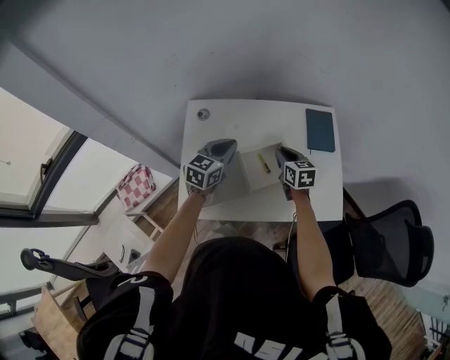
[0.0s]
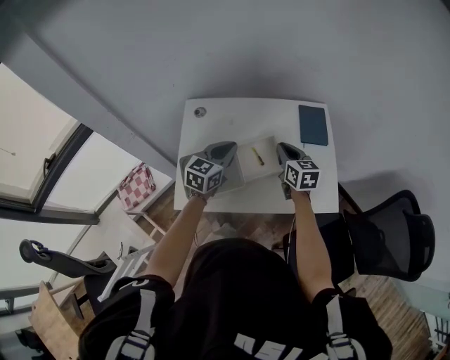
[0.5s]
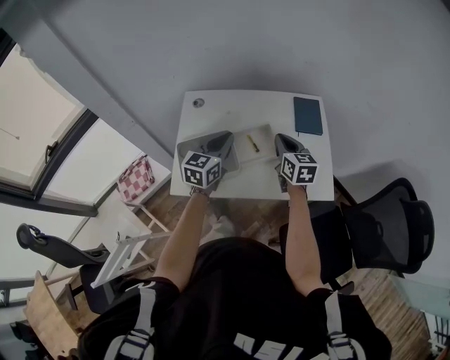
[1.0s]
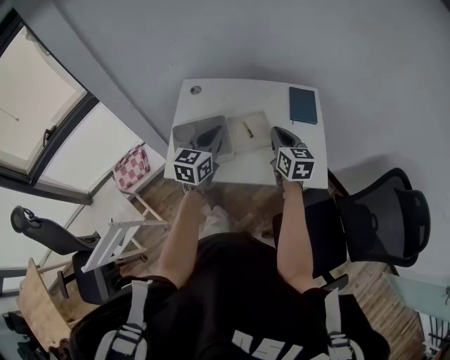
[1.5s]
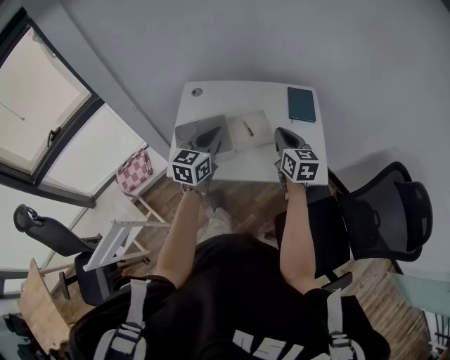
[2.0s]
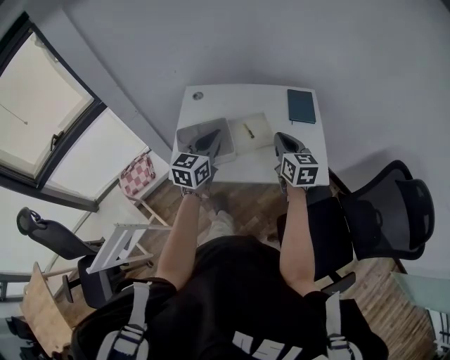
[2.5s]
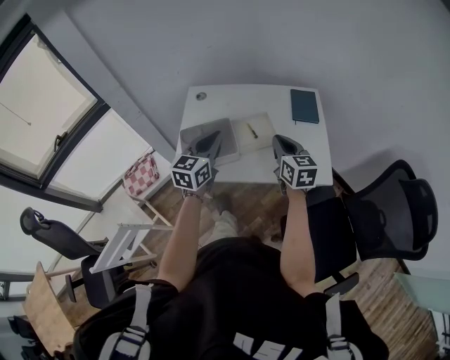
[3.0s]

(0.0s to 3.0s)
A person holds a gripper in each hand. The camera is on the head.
0.0s - 1.5s: The two grippers go approximately 20 cm backward and upward.
1.5s - 3.0s: The right gripper travels backward by some 5 cm.

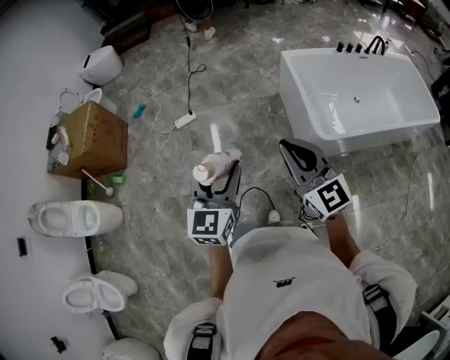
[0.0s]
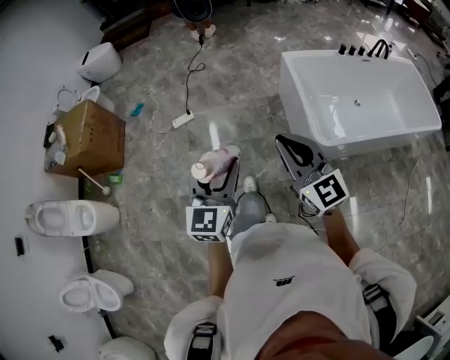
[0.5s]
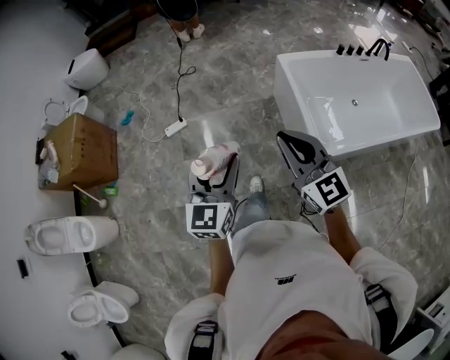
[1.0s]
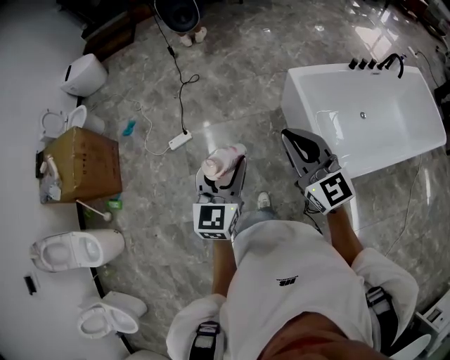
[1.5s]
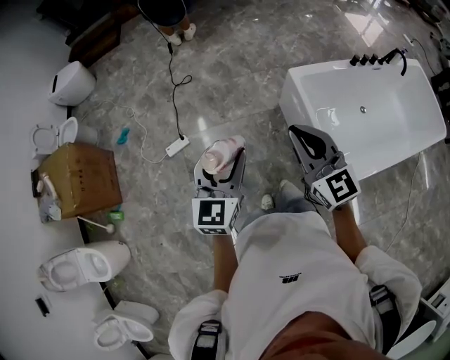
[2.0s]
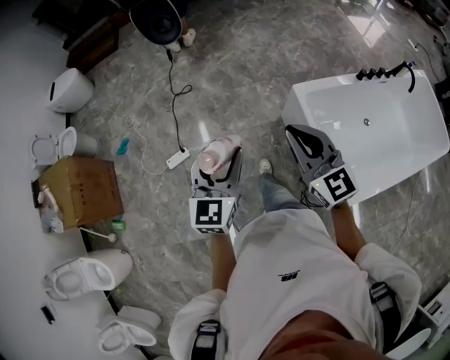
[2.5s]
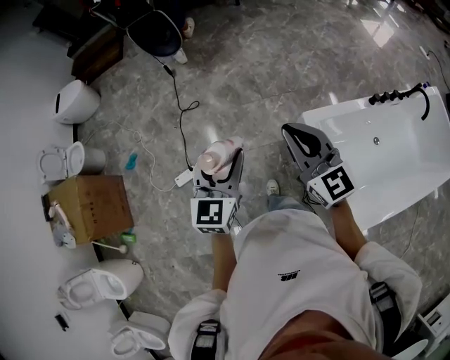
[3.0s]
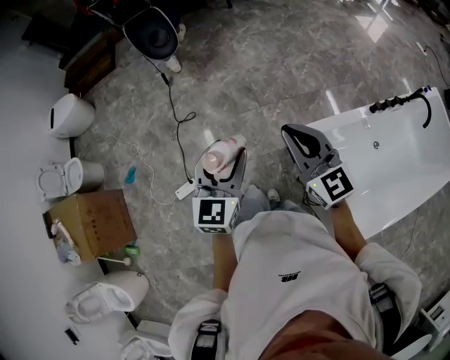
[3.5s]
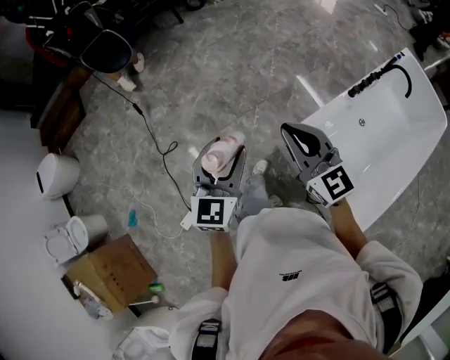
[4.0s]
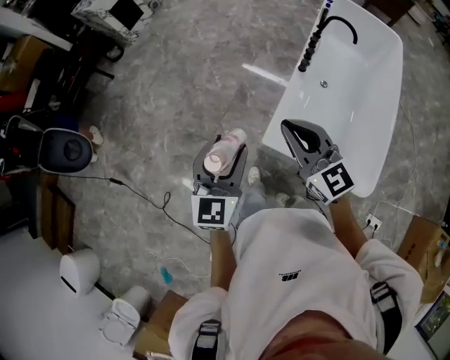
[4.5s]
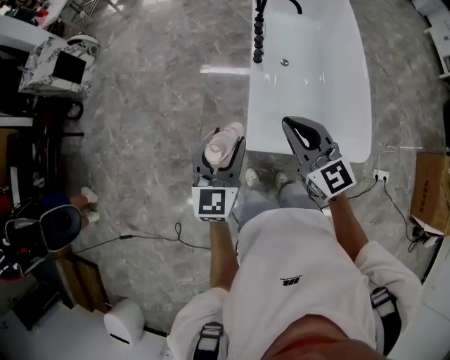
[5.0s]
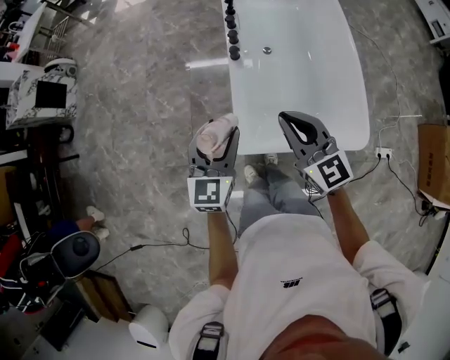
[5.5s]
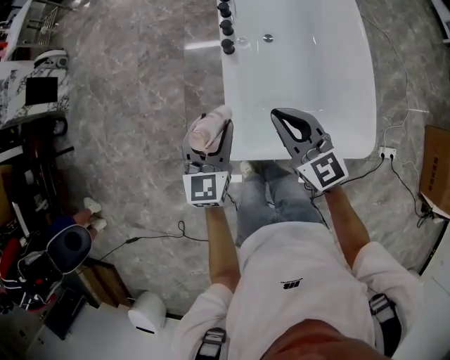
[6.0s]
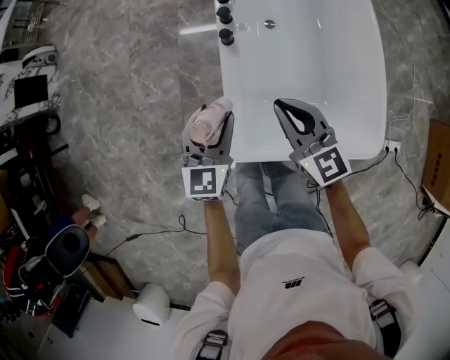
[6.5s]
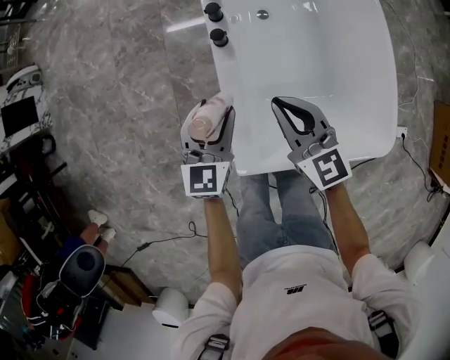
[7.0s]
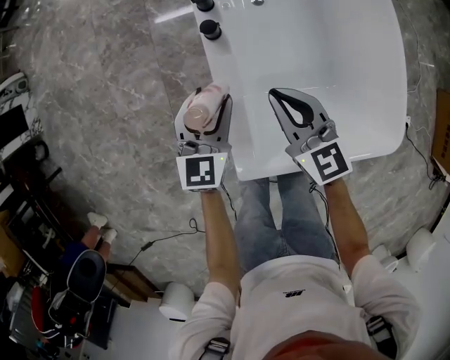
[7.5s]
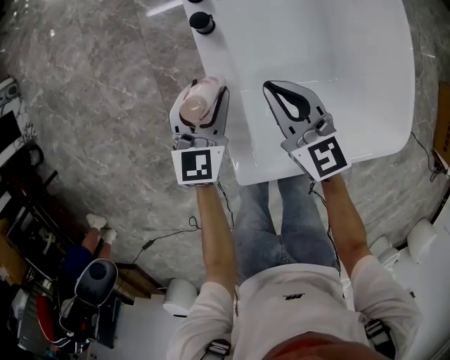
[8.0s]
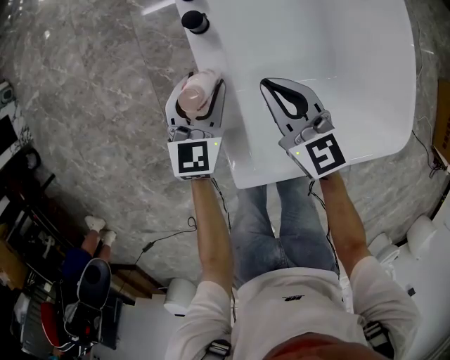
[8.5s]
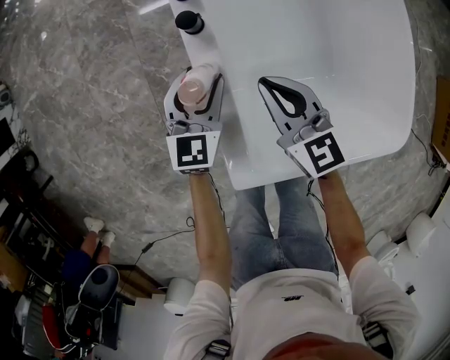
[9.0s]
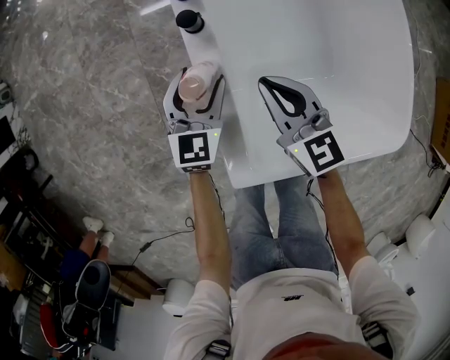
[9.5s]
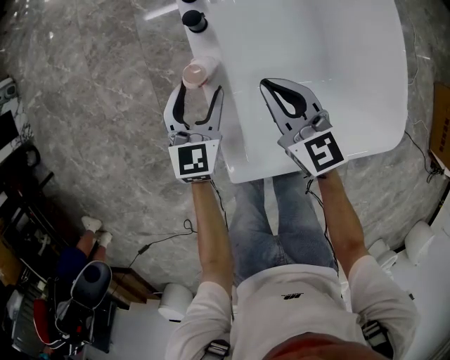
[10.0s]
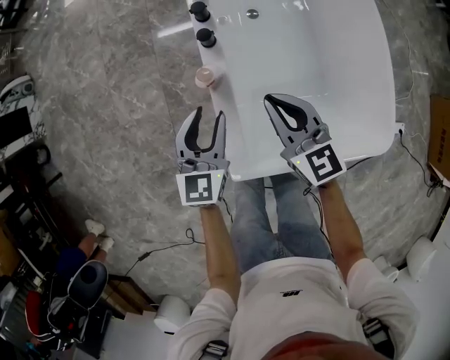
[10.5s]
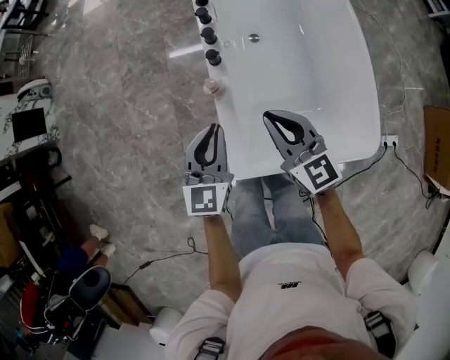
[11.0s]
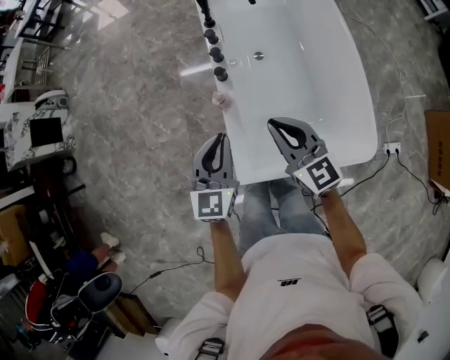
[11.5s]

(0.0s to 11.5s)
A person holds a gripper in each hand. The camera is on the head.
0.0s - 2.0s: The two grippers travel together, forward, about 50 cm.
2.0s - 4.0s: The two grippers travel together, forward, about 60 cm. The left gripper changes its angle by about 20 degrees.
4.0s - 6.0s: Both grippers are carried some 40 cm. The left gripper rotates some 50 degrees; the right gripper changes its angle by approximately 60 degrees.
6.0s - 7.5s: Both grippers move downward and forward, some 25 cm.
7.5s - 9.5s: Both grippers travel together downward, approximately 10 cm.
9.5s - 11.5s: The left gripper moves upward and backward, roughly 35 cm, and closes its fingers; the right gripper heads upward, covering approximately 30 cm.

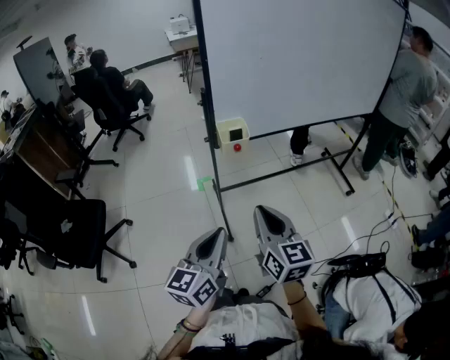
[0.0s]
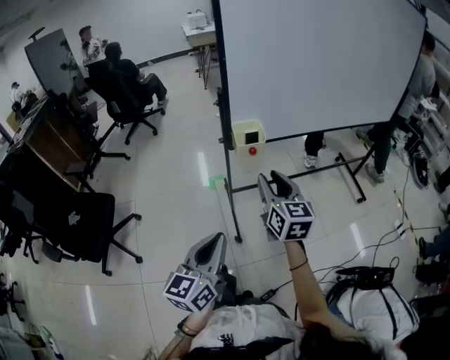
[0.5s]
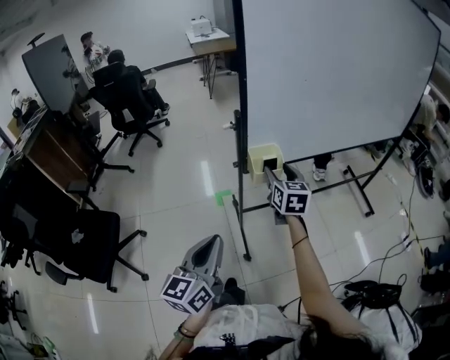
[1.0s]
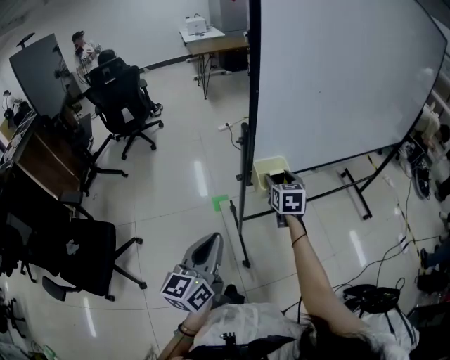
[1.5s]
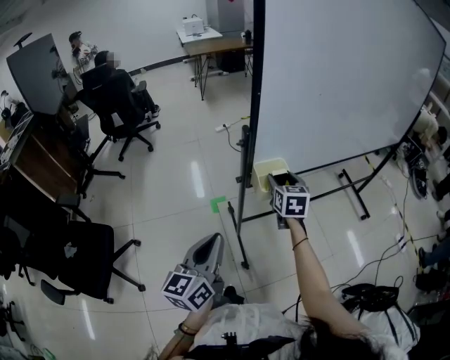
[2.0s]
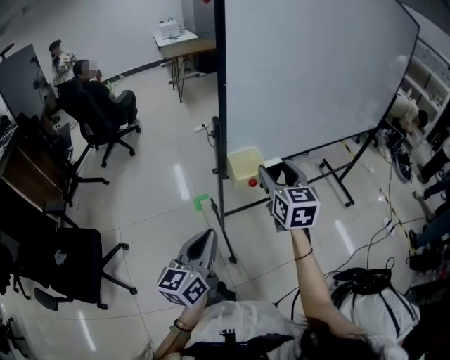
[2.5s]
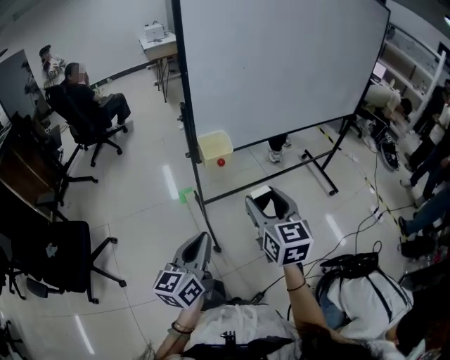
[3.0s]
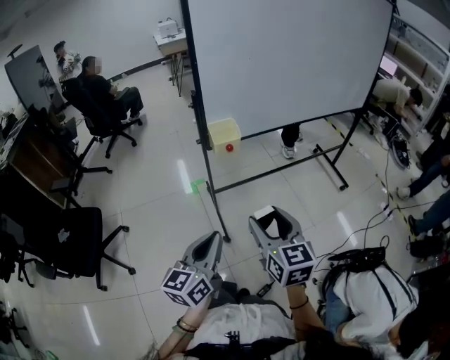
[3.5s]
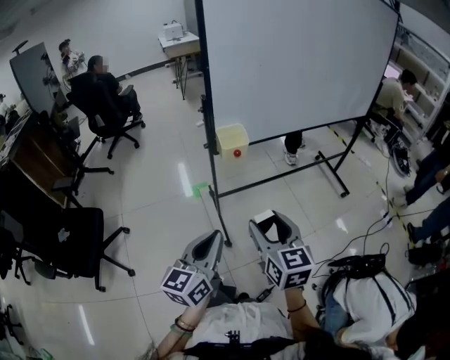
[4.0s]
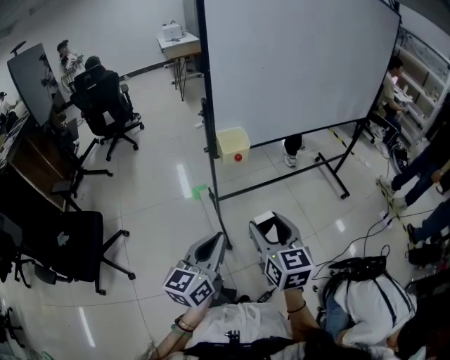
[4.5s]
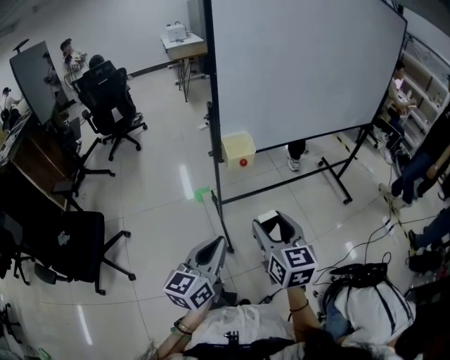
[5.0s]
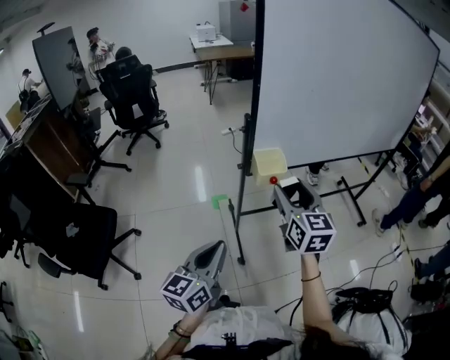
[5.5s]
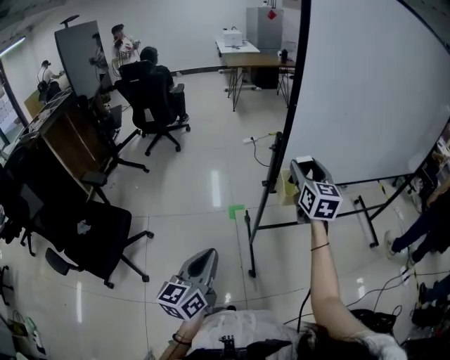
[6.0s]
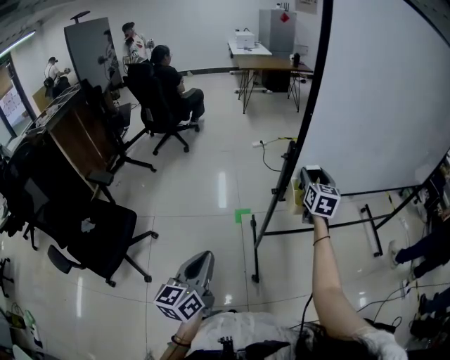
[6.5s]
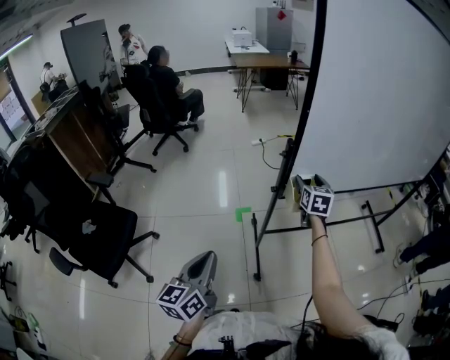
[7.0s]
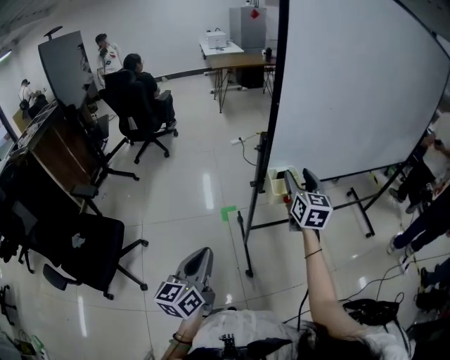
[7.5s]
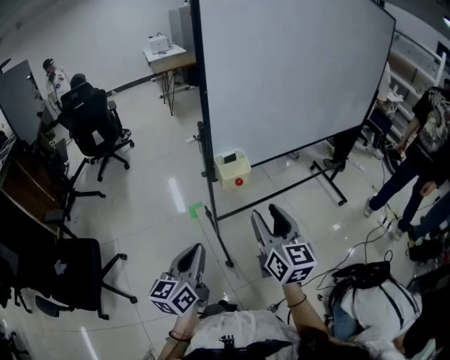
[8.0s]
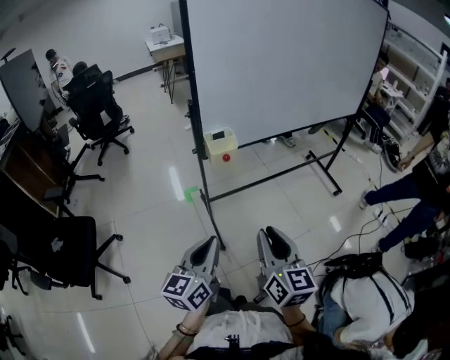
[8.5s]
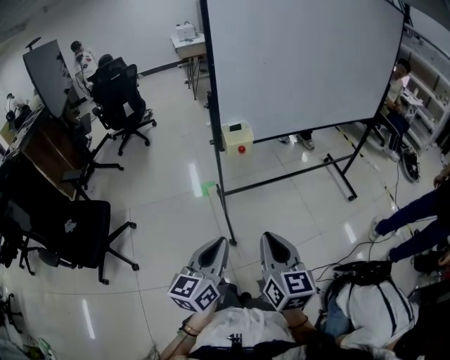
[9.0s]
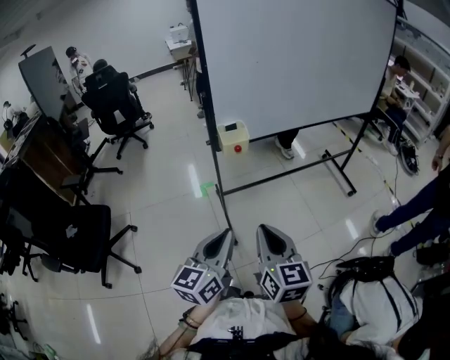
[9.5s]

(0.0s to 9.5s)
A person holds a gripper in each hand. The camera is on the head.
0.0s - 2.0s: The left gripper goes roughly 25 cm forward and to the left, while the right gripper goes about 35 cm forward, swivels approximately 20 degrees, and opens.
2.0s - 4.0s: The left gripper travels backward and to the right by some 20 cm, while the right gripper heads backward, covering approximately 40 cm.
4.0s - 5.5s: The right gripper is displaced forward by about 20 cm. The left gripper goes roughly 10 cm to the left and forward.
5.5s - 7.5s: The left gripper is displaced to the left by roughly 10 cm; the right gripper travels forward by some 15 cm.
7.5s - 9.5s: The right gripper moves backward, approximately 40 cm, and closes up, while the left gripper shifts about 25 cm to the right and backward.

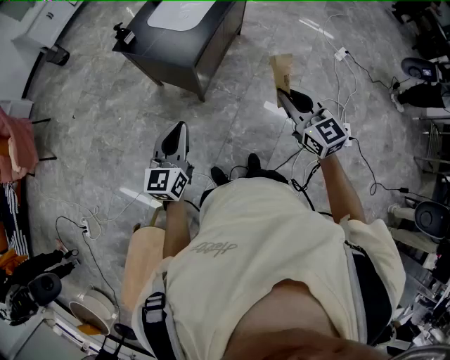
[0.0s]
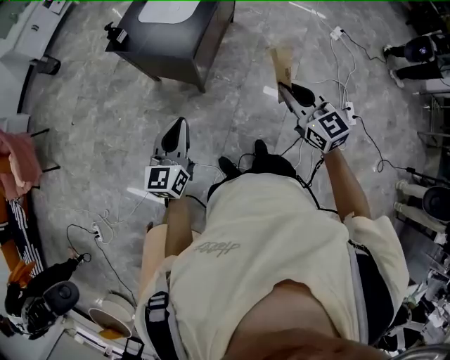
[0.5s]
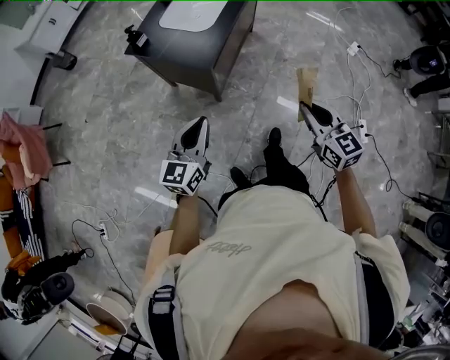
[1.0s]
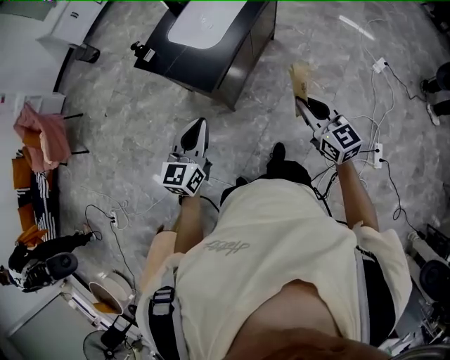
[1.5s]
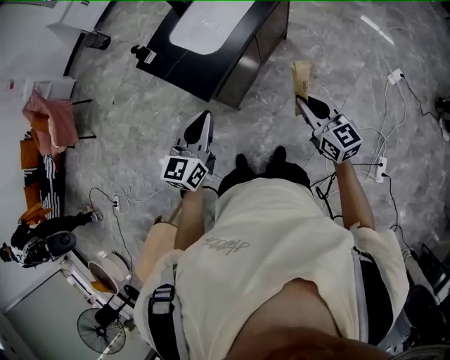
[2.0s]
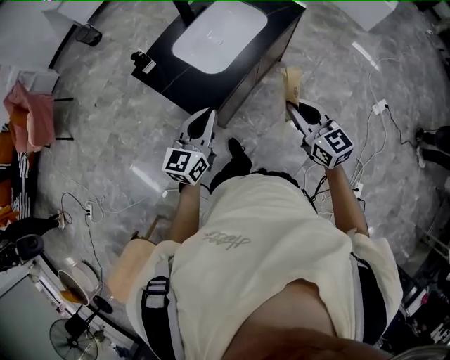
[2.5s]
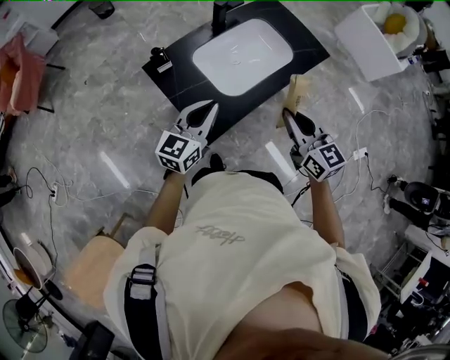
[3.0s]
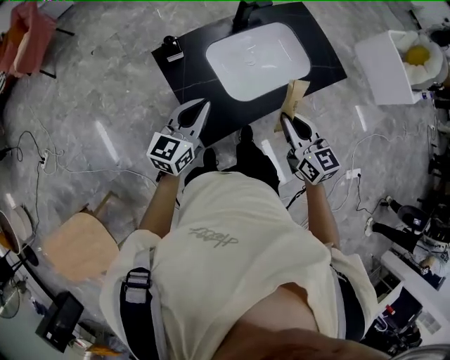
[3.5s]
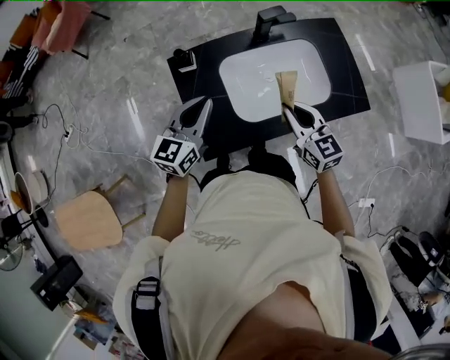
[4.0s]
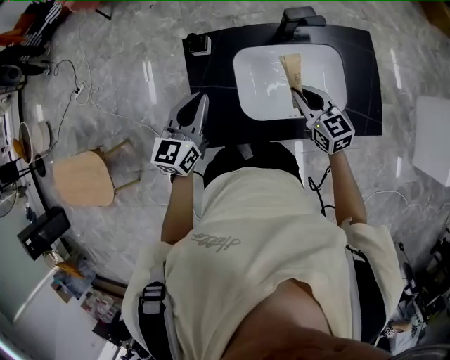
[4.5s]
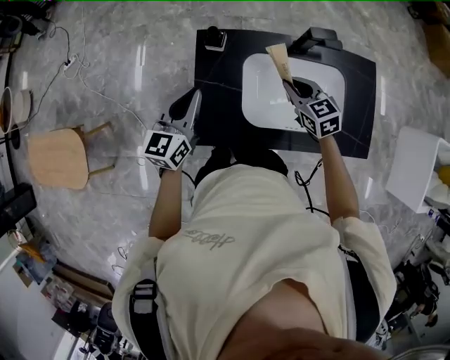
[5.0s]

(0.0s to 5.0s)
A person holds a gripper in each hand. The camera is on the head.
0.0s - 2.5s: The grippers both shift forward by approximately 35 cm.
2.5s - 5.0s: The right gripper moves approximately 50 cm, and changes its angle by about 60 degrees. The left gripper shifts by approximately 25 cm, and rotates roughly 50 degrees.
